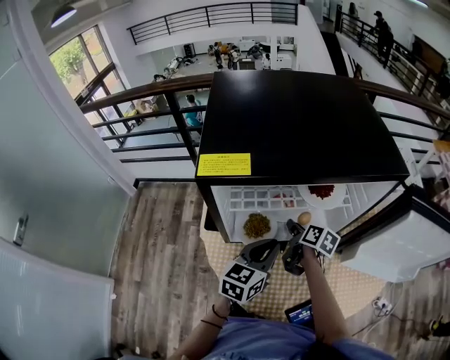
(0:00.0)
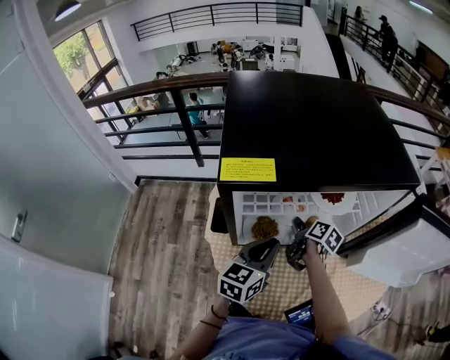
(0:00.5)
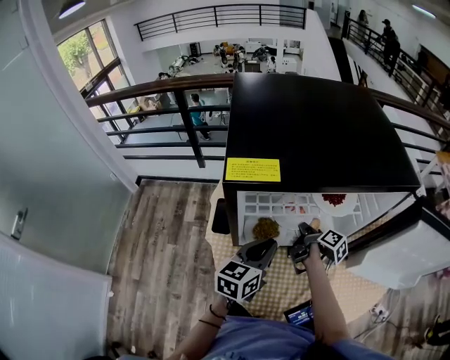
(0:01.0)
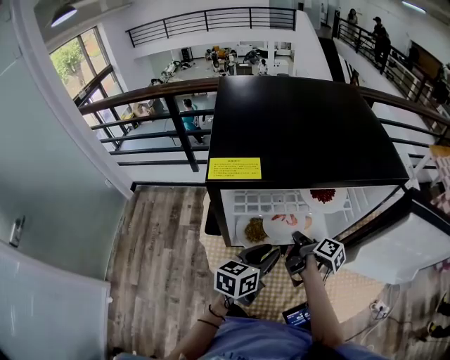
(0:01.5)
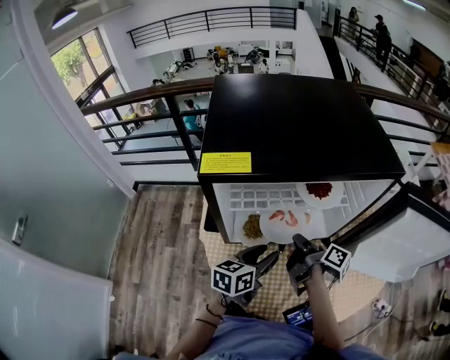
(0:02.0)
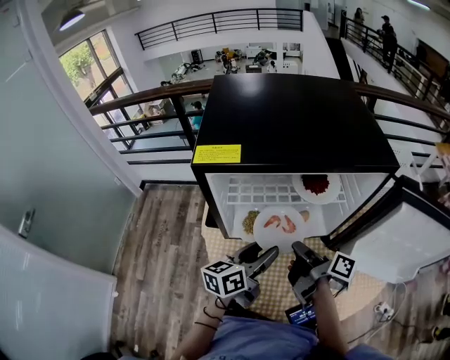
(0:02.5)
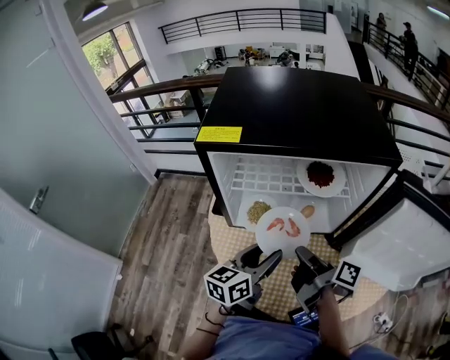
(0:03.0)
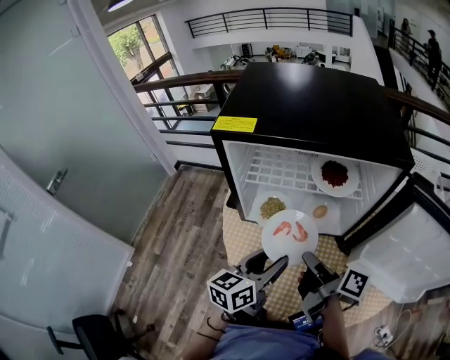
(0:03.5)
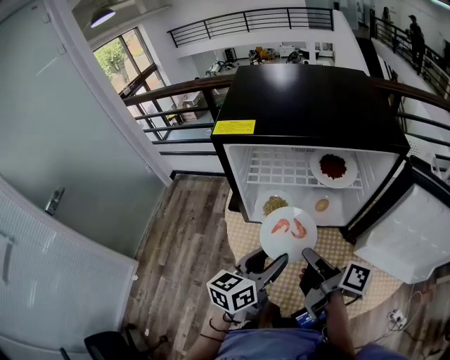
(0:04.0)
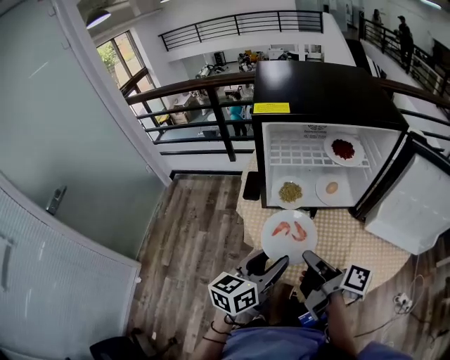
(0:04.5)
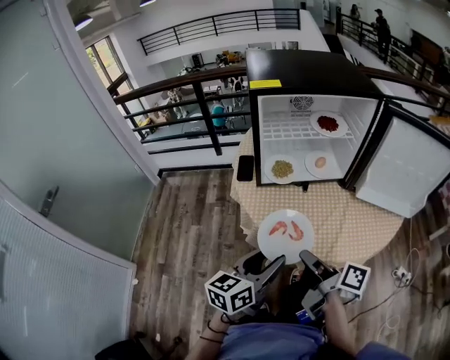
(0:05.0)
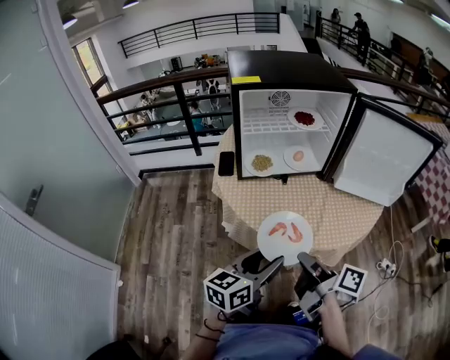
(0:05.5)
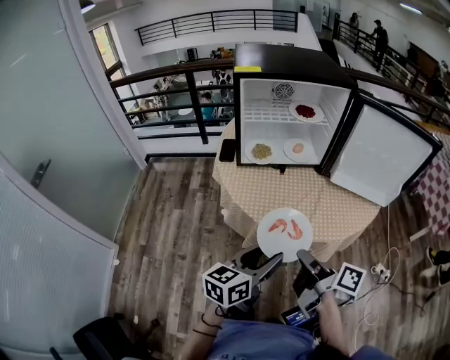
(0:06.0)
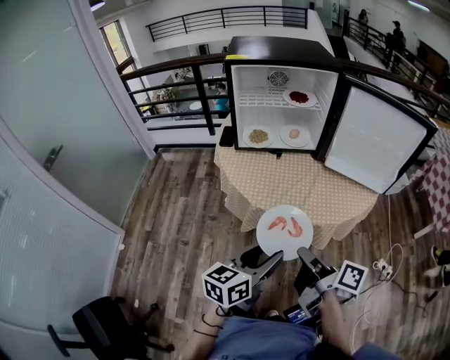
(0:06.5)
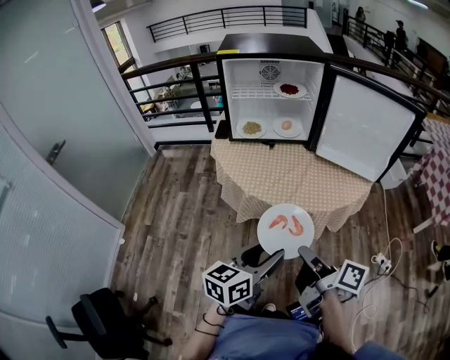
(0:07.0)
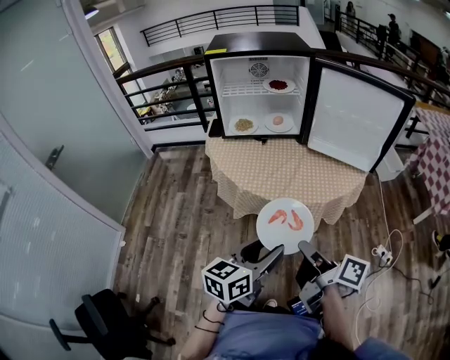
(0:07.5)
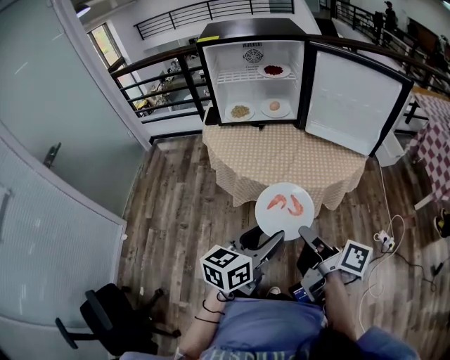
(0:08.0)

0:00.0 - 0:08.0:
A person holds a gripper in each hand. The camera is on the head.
0:00.0 - 0:02.0: The left gripper opens. The right gripper goes some 5 cm backward, turns by approximately 30 degrees, and closes.
0:02.0 - 0:04.0: The grippers both shift backward and upward by roughly 15 cm. The right gripper swivels approximately 20 degrees.
0:04.0 - 0:06.0: Both grippers travel together backward, about 30 cm.
0:06.0 - 0:08.0: The grippers both shift backward and to the right by roughly 20 cm.

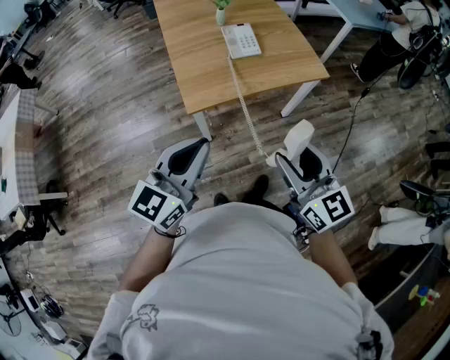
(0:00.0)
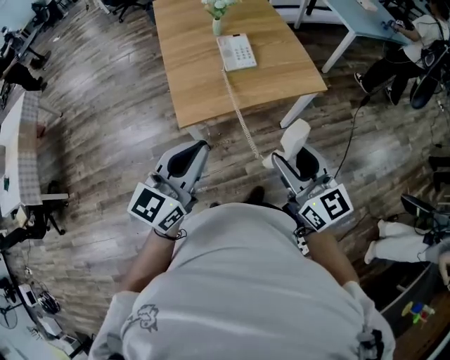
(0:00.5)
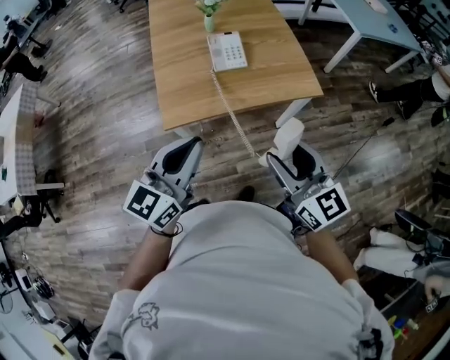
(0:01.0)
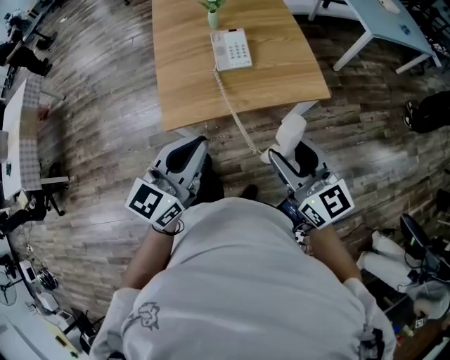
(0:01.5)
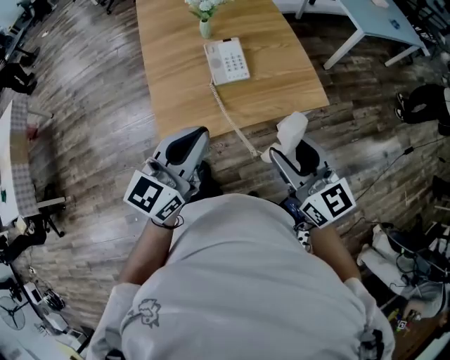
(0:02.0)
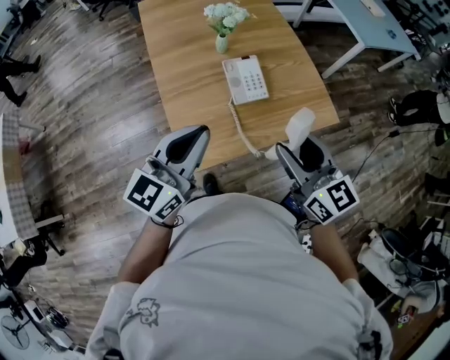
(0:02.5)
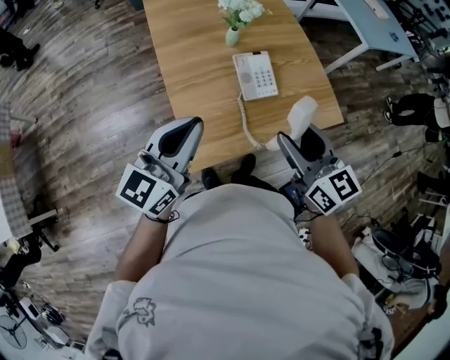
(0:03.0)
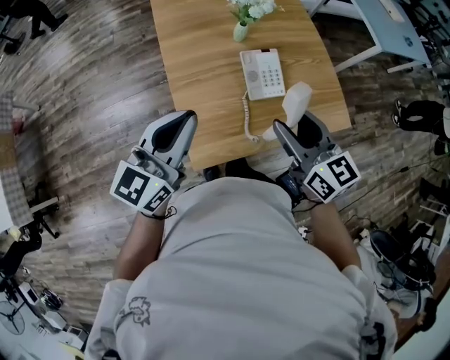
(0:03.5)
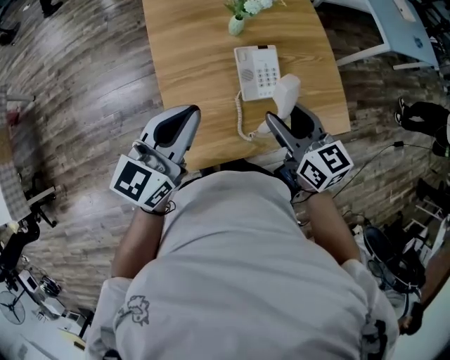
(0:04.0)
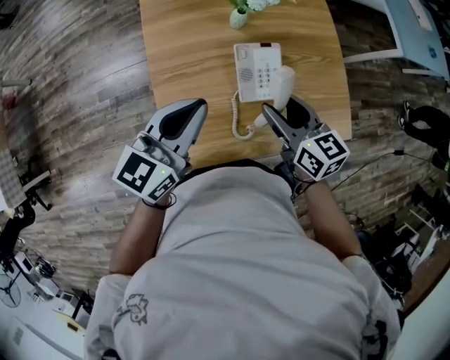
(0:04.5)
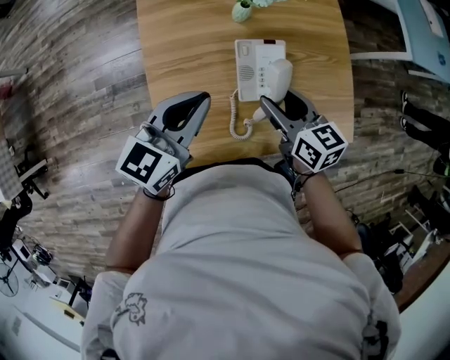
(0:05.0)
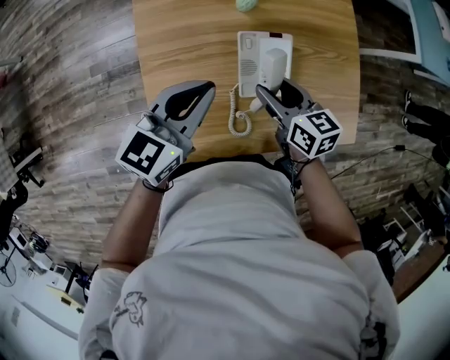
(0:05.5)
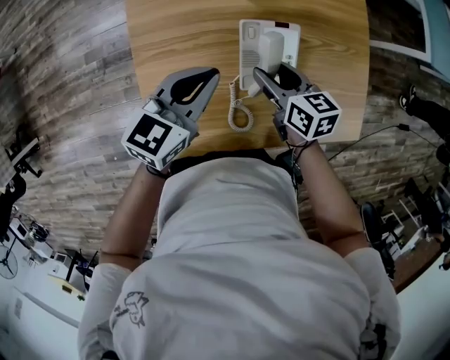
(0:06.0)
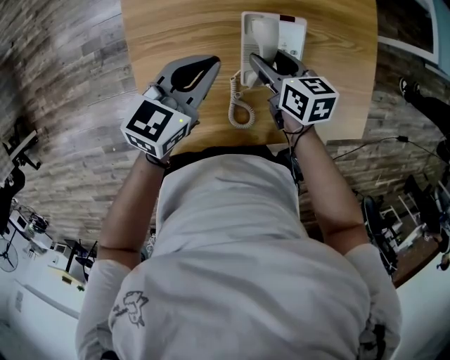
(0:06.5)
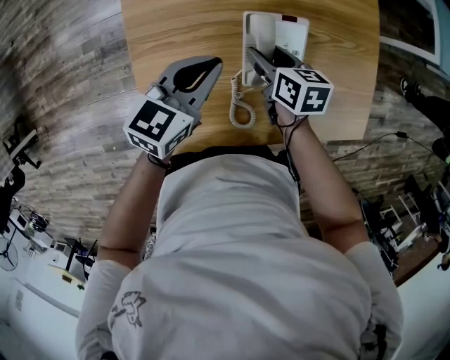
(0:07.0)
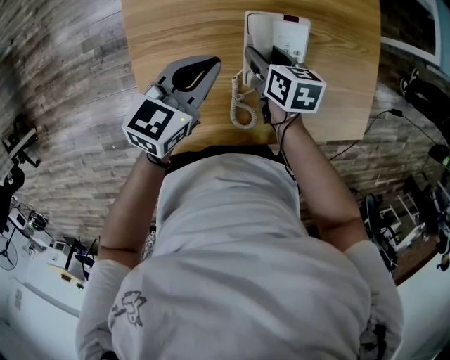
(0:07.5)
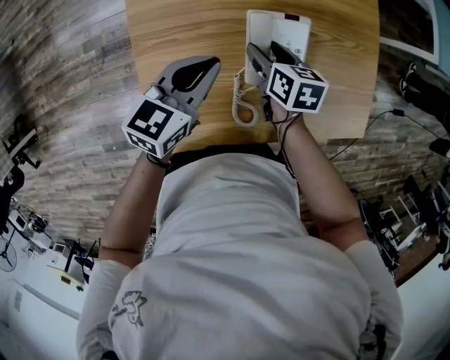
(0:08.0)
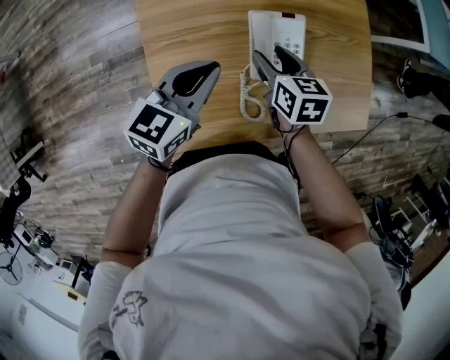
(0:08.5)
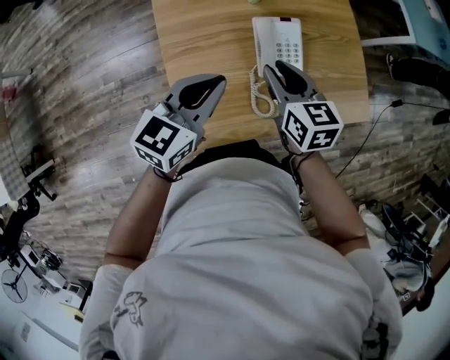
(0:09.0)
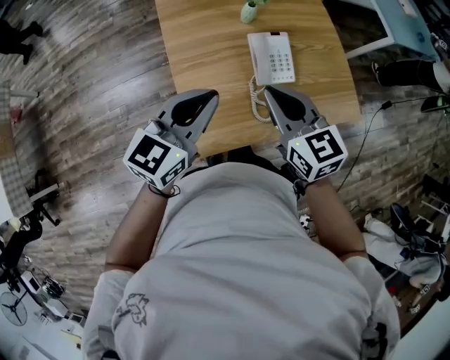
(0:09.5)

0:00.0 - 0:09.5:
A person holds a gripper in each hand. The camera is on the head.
0:00.0 - 0:02.0: The left gripper shifts approximately 25 cm forward and to the right. The right gripper heads forward, covering about 25 cm.
0:02.0 - 0:04.0: The grippers both shift forward and to the left by approximately 25 cm.
0:04.0 - 0:05.5: The left gripper goes about 15 cm downward, forward and to the right, while the right gripper goes about 20 cm downward and forward.
0:05.5 - 0:07.5: Both grippers travel together downward, roughly 10 cm.
0:07.5 - 0:09.5: The two grippers go roughly 30 cm upward and backward. The right gripper rotates some 40 degrees, and closes up; the left gripper swivels about 20 degrees.

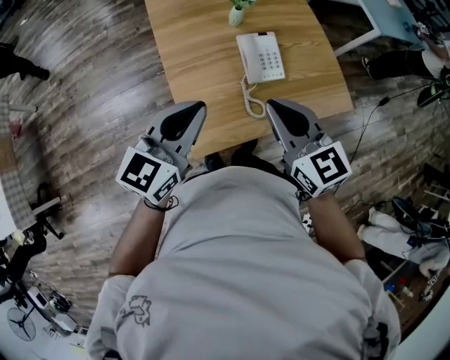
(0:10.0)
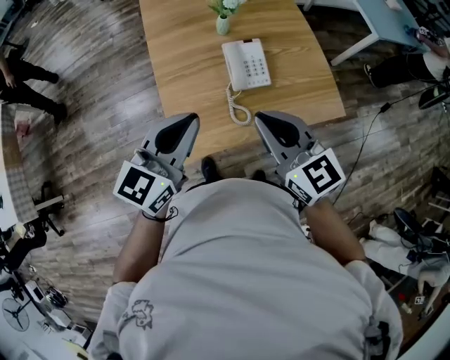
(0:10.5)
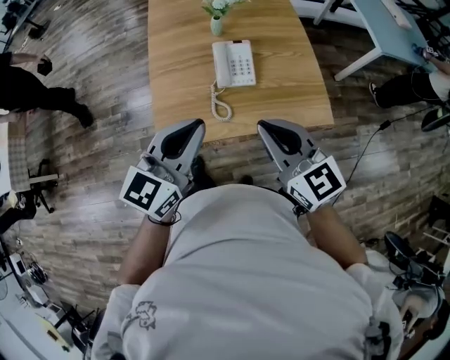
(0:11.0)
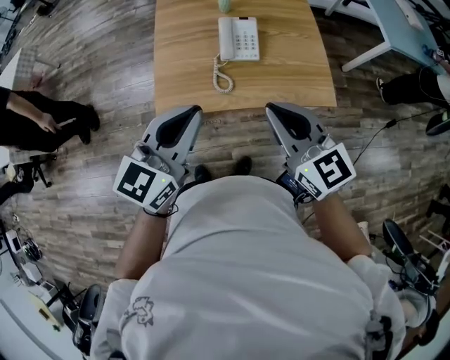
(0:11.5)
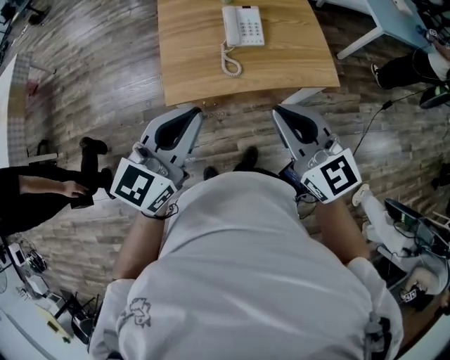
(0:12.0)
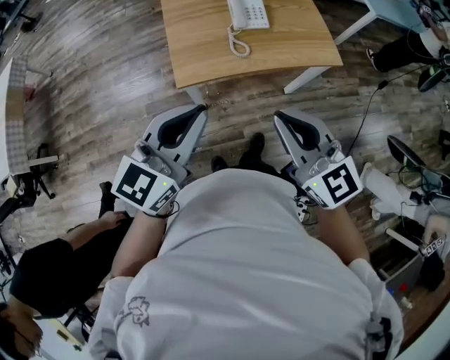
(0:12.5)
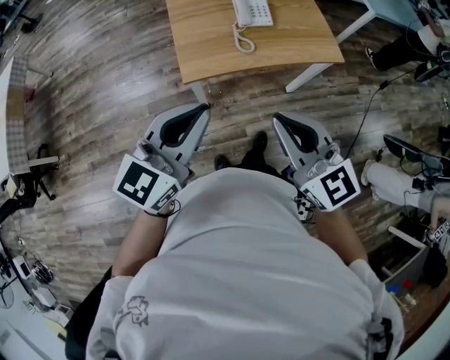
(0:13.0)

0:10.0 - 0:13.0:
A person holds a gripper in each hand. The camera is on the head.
0:10.0 - 0:11.5: Both grippers travel together to the right and backward, about 25 cm.
0:11.5 - 0:13.0: Both grippers travel together backward and to the left, approximately 25 cm.

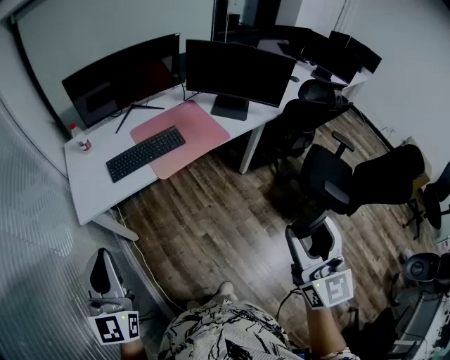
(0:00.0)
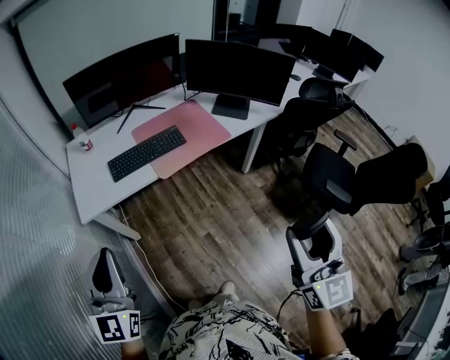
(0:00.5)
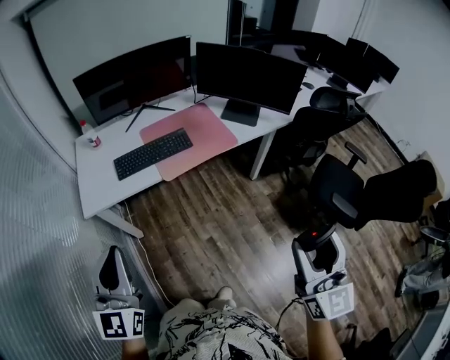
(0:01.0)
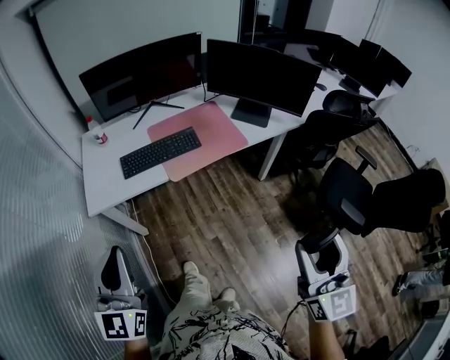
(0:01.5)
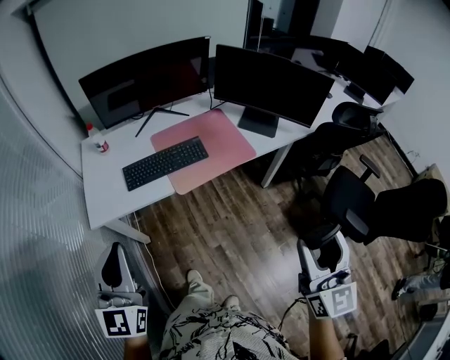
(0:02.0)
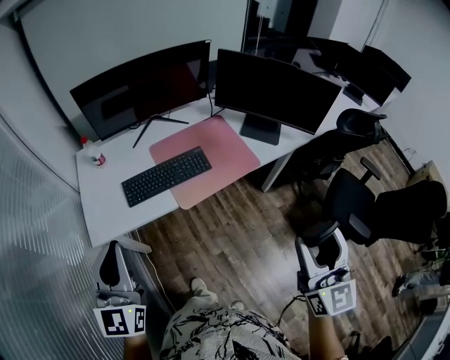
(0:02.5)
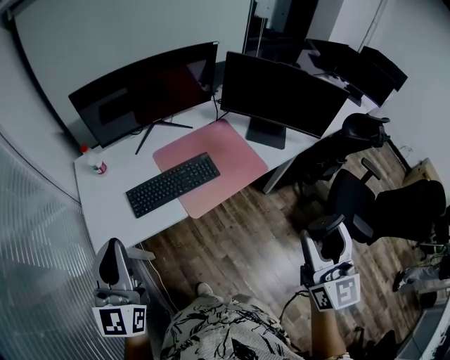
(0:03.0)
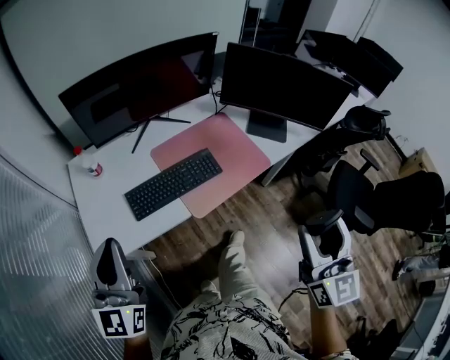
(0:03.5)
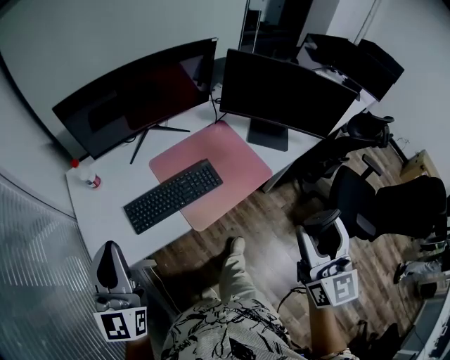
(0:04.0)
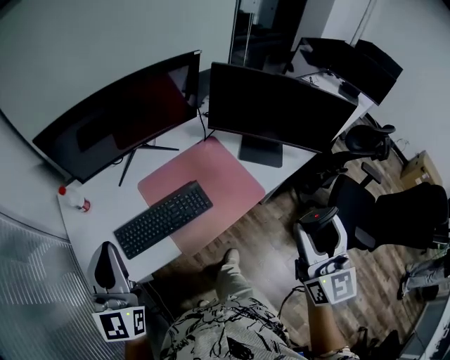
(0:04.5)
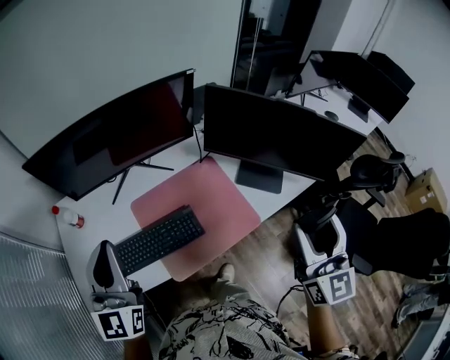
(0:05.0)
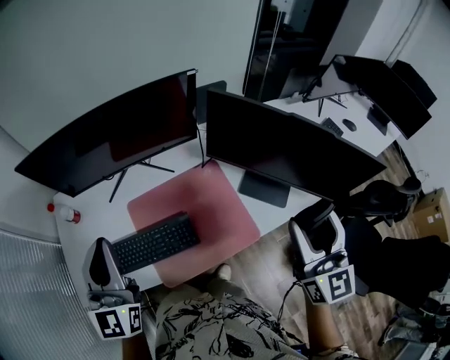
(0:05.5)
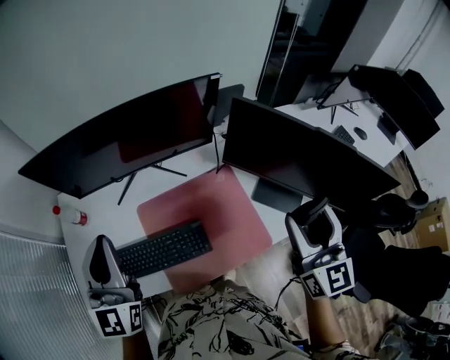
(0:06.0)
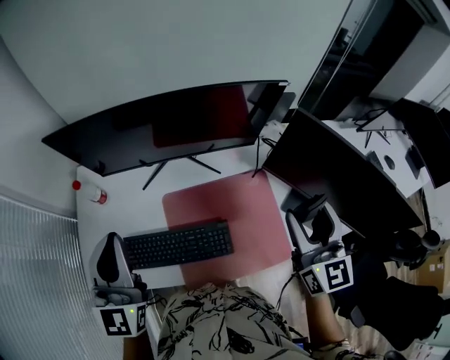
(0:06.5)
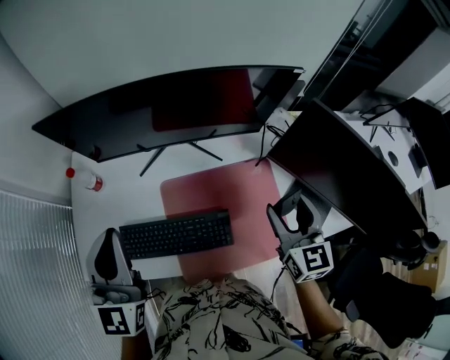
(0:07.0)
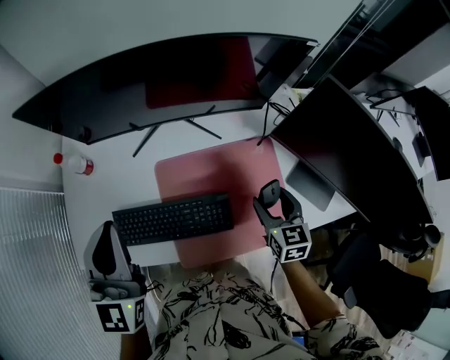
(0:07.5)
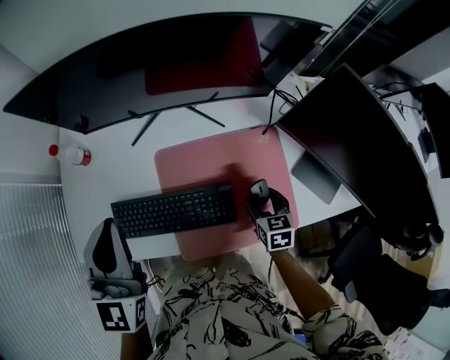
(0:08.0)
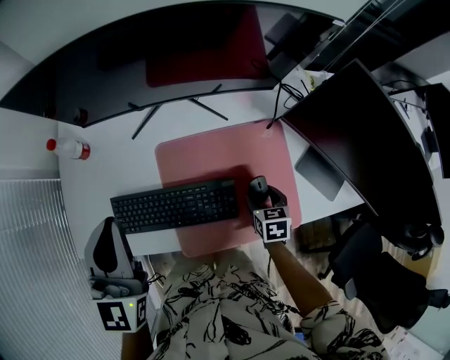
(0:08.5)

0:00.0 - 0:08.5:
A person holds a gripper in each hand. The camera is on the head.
0:00.0 - 0:02.0: Both grippers move forward, about 10 cm.
0:02.0 - 0:04.0: Both grippers move forward and to the left, approximately 25 cm.
0:04.0 - 0:06.5: The right gripper shifts about 40 cm forward, and rotates approximately 20 degrees, while the left gripper travels forward by approximately 25 cm.
0:06.5 - 0:08.5: The left gripper is displaced downward by about 10 cm, while the right gripper shifts approximately 40 cm downward, and points its fingers approximately 50 degrees further downward.
